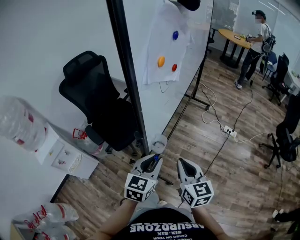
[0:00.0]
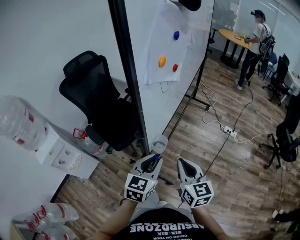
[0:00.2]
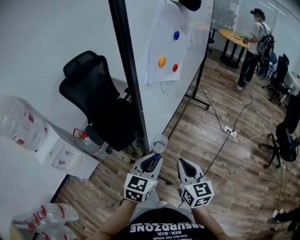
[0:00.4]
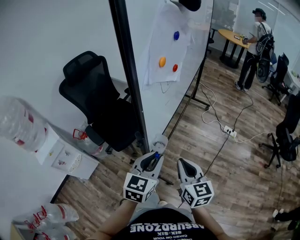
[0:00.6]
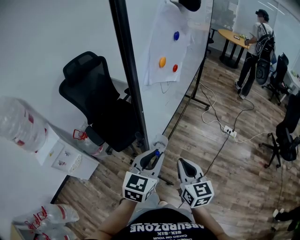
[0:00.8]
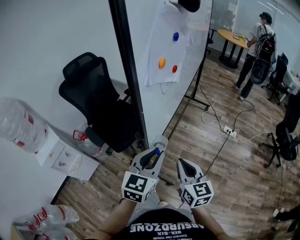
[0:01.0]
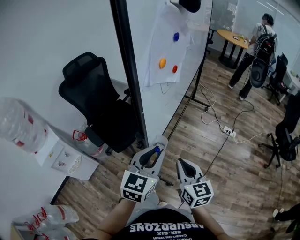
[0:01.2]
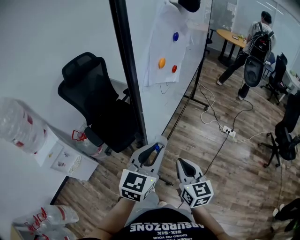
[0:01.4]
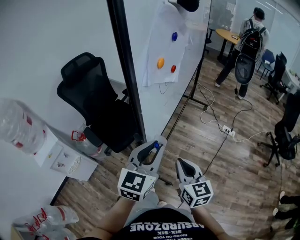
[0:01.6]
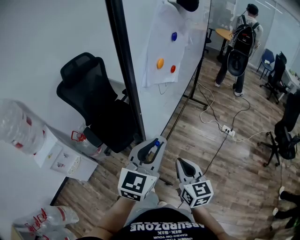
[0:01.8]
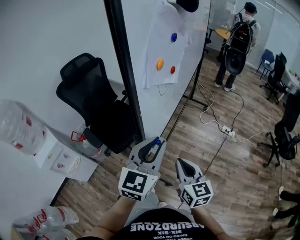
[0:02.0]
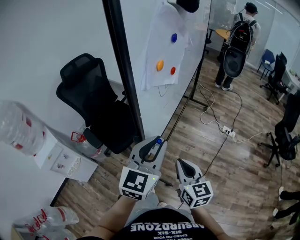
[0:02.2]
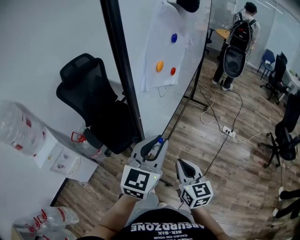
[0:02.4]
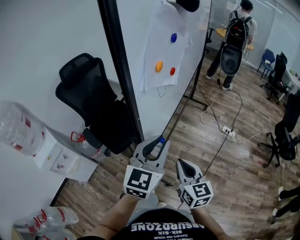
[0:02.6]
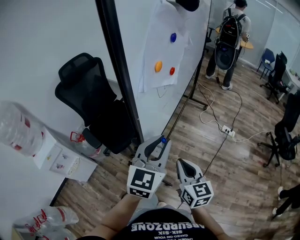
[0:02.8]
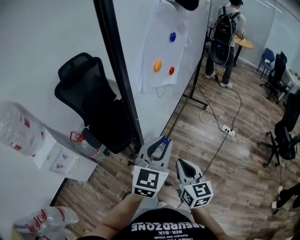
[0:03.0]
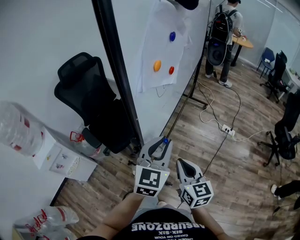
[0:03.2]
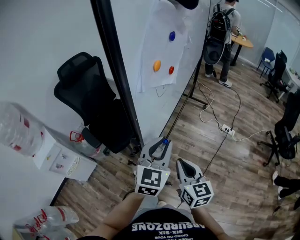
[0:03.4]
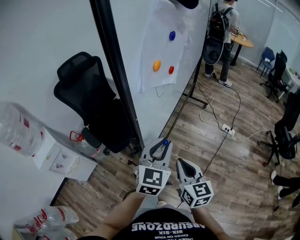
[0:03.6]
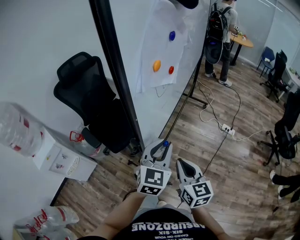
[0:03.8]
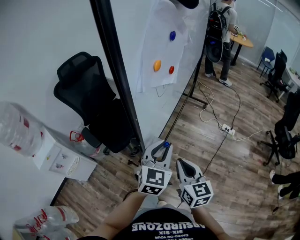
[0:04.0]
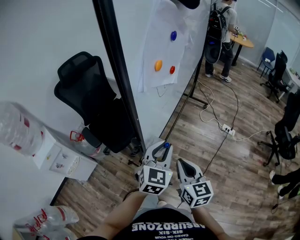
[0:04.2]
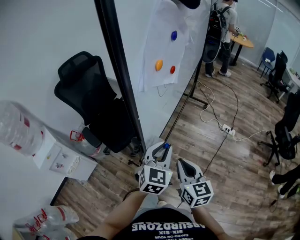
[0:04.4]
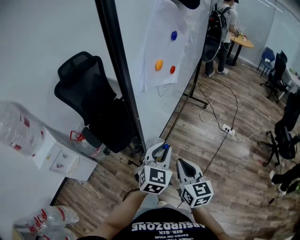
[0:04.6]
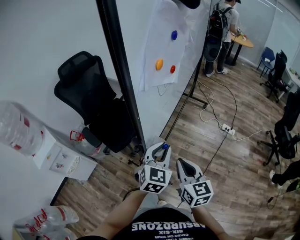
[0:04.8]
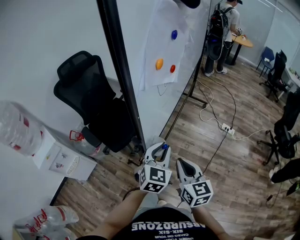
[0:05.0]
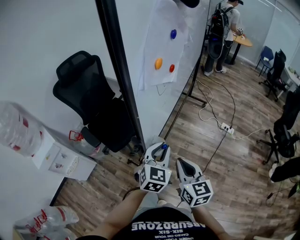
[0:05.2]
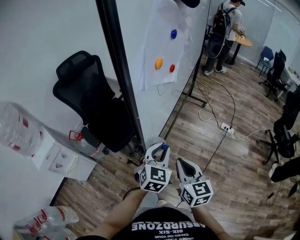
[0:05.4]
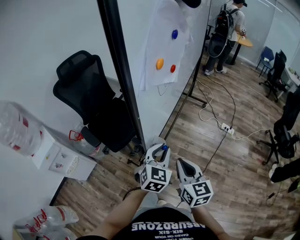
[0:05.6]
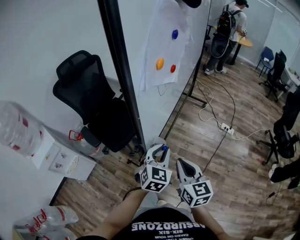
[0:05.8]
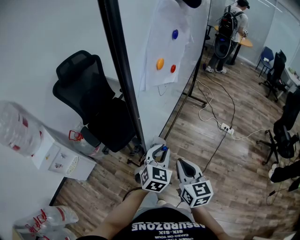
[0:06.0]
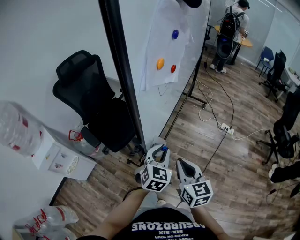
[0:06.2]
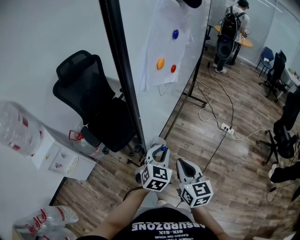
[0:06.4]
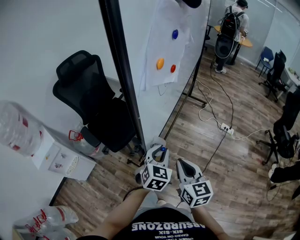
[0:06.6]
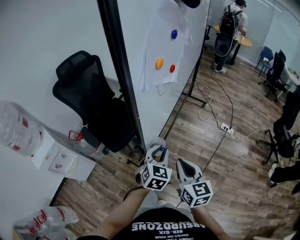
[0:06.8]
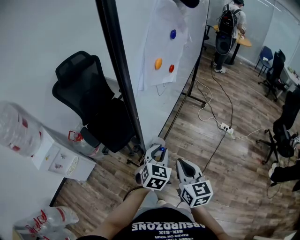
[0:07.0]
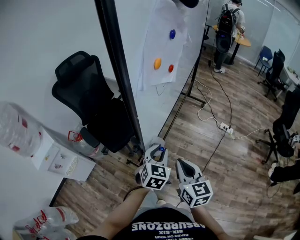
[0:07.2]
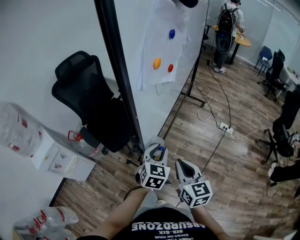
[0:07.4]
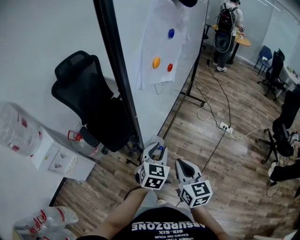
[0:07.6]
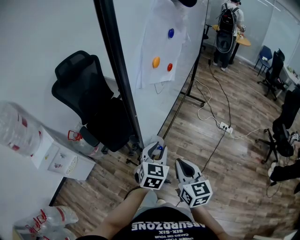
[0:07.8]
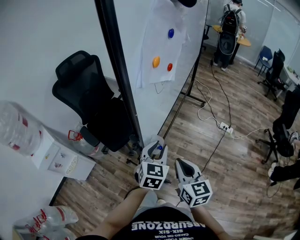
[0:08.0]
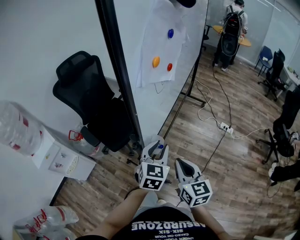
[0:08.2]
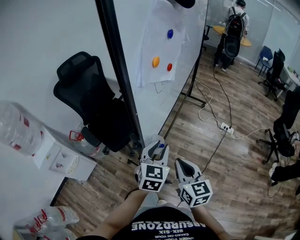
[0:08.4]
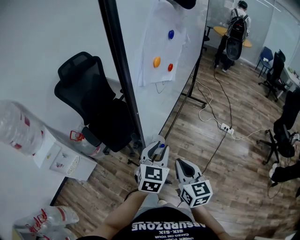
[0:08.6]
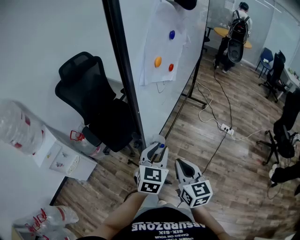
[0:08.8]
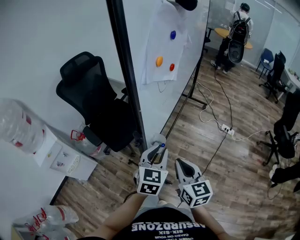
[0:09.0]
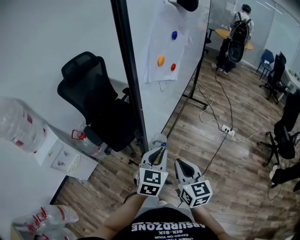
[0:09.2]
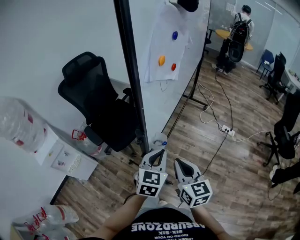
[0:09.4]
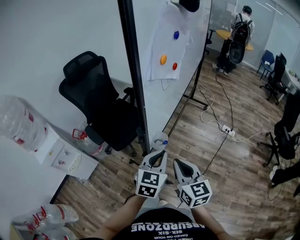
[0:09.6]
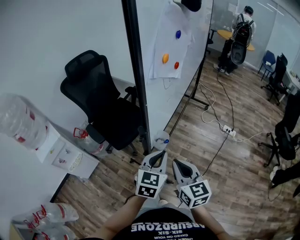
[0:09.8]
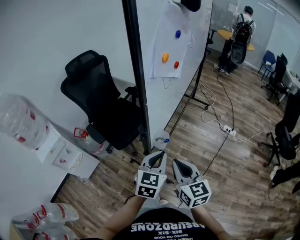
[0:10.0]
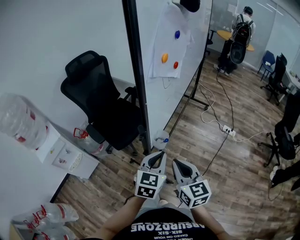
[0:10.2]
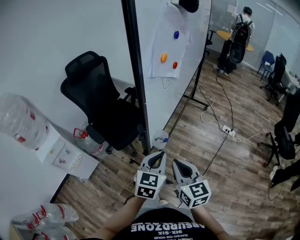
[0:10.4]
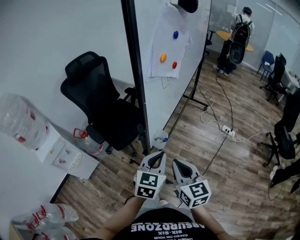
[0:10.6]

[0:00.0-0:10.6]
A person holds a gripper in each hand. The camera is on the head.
0:00.0 to 0:01.6: The left gripper travels upward by roughly 10 cm.
0:01.6 to 0:03.0: The left gripper changes place by roughly 5 cm.
0:03.0 to 0:04.6: The left gripper moves downward, some 10 cm.
0:04.6 to 0:06.0: The grippers move only a little.
0:06.0 to 0:07.6: The grippers stay close to where they were, moving slightly.
0:07.6 to 0:09.0: The left gripper shifts about 5 cm upward.
0:09.0 to 0:10.6: The left gripper travels backward by about 5 cm.

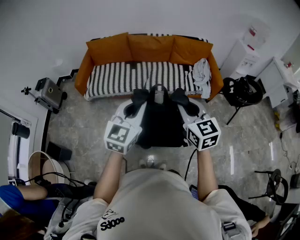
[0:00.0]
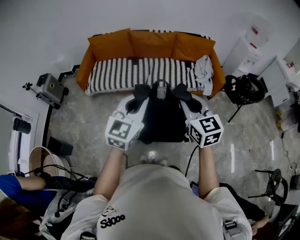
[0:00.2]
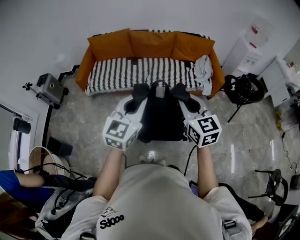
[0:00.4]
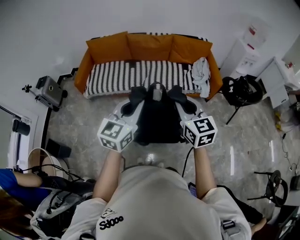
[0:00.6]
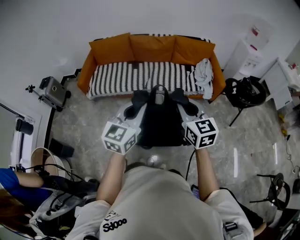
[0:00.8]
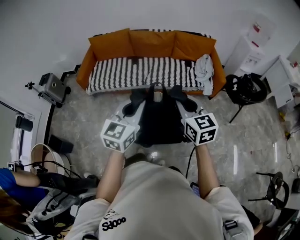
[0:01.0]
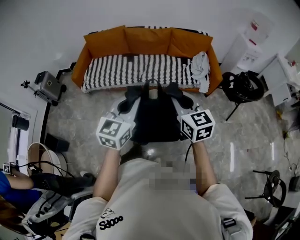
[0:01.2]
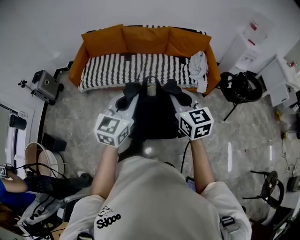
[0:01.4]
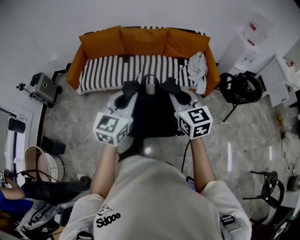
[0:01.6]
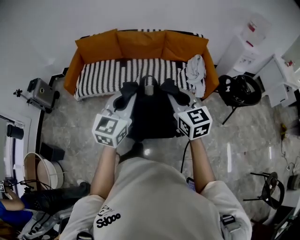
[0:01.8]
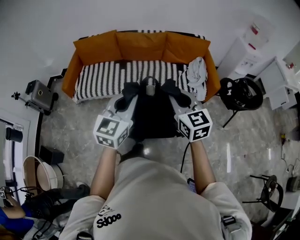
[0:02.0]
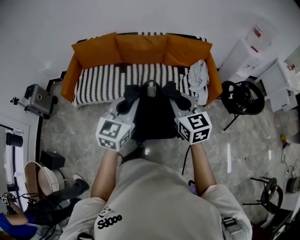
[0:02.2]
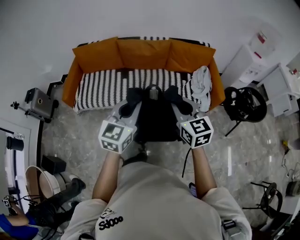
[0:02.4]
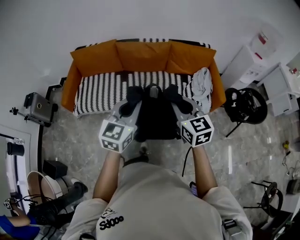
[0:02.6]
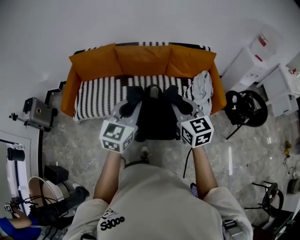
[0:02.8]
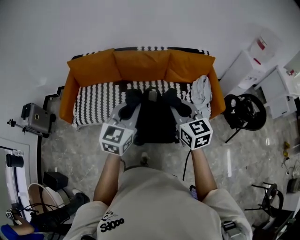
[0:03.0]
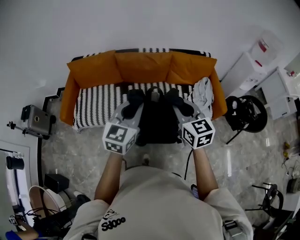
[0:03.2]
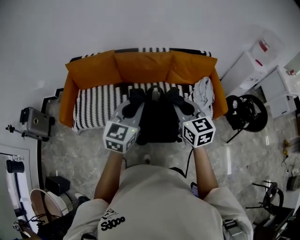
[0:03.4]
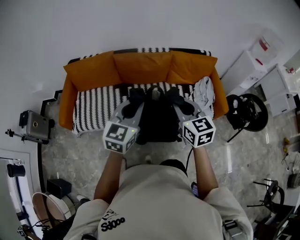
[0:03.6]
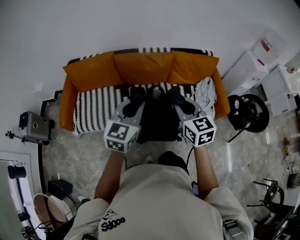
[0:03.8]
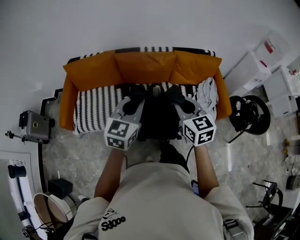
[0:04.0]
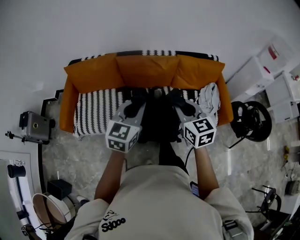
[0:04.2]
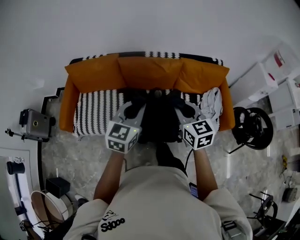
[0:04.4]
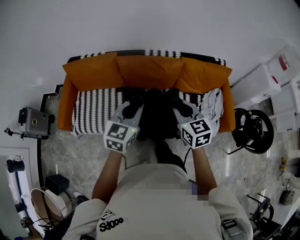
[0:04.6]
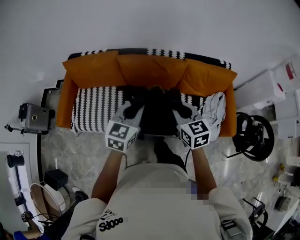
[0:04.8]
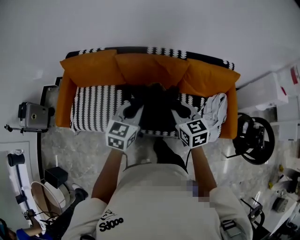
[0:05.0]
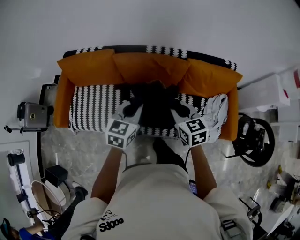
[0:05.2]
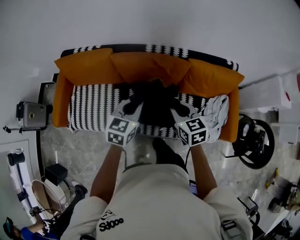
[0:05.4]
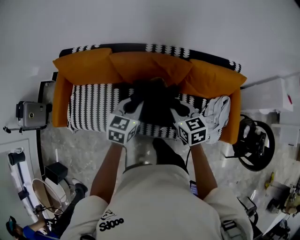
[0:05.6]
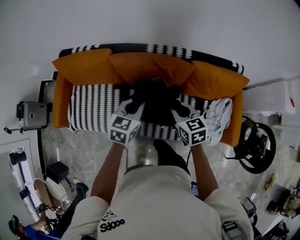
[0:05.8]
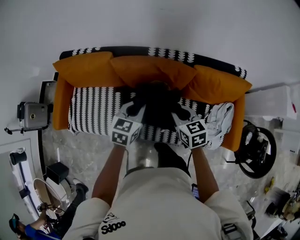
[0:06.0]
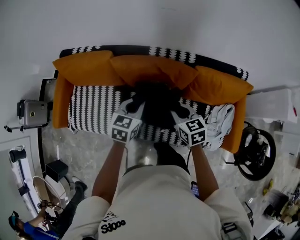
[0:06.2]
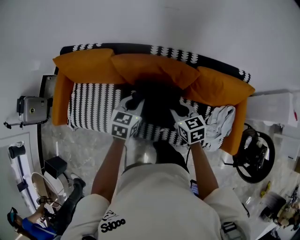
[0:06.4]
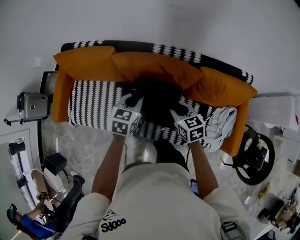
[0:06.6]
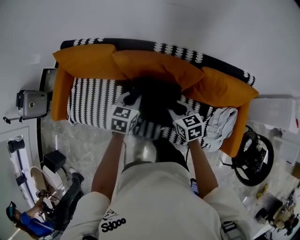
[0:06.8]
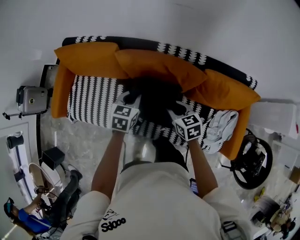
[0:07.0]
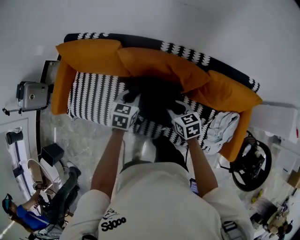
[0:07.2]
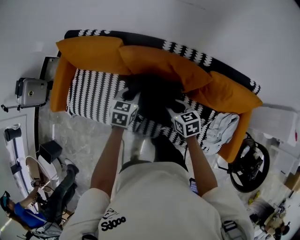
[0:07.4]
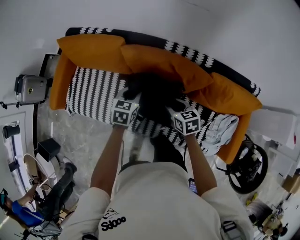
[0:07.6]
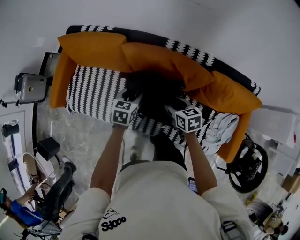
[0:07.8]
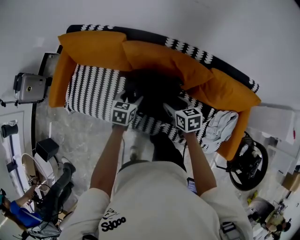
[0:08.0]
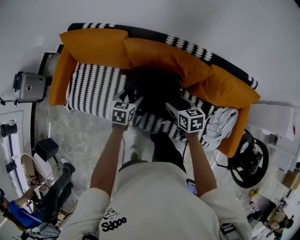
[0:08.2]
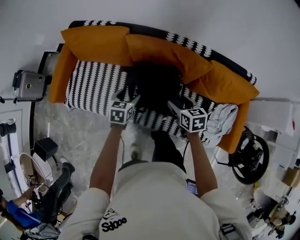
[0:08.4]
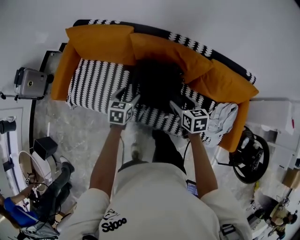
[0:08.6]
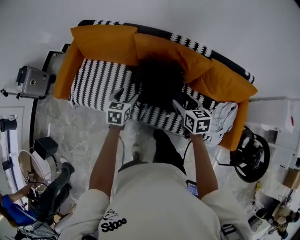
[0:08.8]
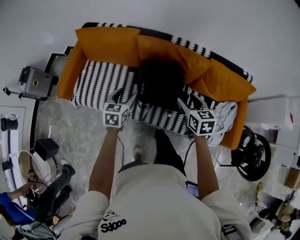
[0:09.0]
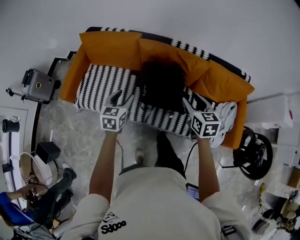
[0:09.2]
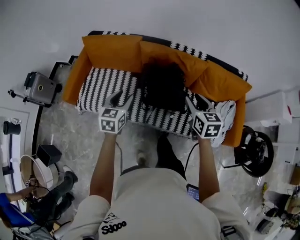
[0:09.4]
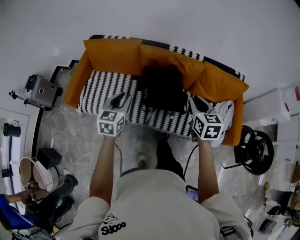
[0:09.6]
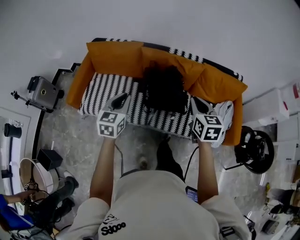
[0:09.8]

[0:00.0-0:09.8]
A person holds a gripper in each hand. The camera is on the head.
0:00.0 to 0:01.4: The two grippers go some 5 cm to the right.
0:01.4 to 0:02.8: Both grippers move forward, roughly 30 cm.
0:02.8 to 0:04.2: The grippers both shift forward by about 20 cm.
0:04.2 to 0:05.6: Both grippers travel together forward and downward, roughly 30 cm. The right gripper rotates approximately 20 degrees; the left gripper changes its angle by approximately 20 degrees.
0:05.6 to 0:07.0: The grippers both shift downward and forward by approximately 15 cm.
0:07.0 to 0:08.4: The right gripper travels backward by about 5 cm, and opens up. The left gripper moves to the left, backward and downward, roughly 15 cm, and opens up.
0:08.4 to 0:09.8: The left gripper goes about 35 cm upward, backward and to the left, turns by roughly 30 degrees, and closes its fingers. Meanwhile the right gripper shifts roughly 30 cm upward and backward, changes its angle by some 30 degrees, and closes.

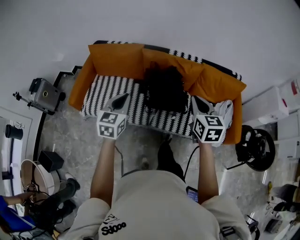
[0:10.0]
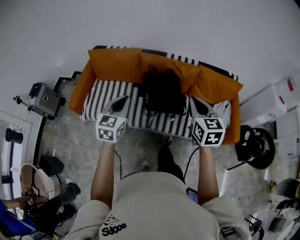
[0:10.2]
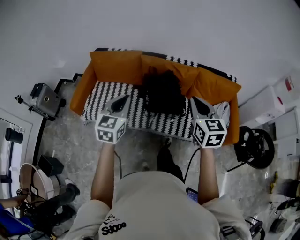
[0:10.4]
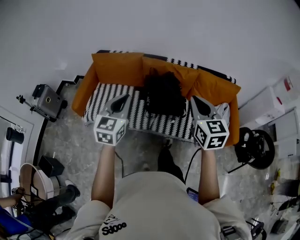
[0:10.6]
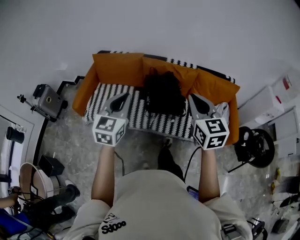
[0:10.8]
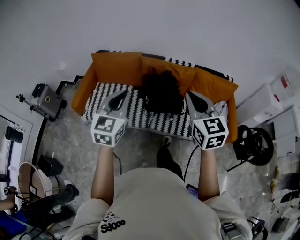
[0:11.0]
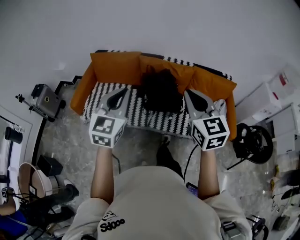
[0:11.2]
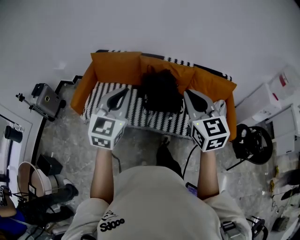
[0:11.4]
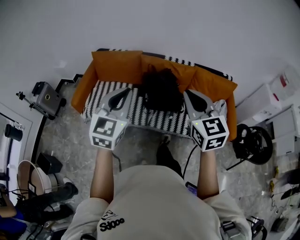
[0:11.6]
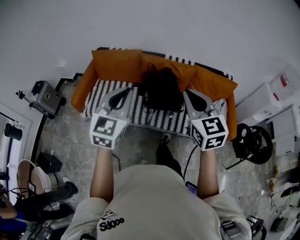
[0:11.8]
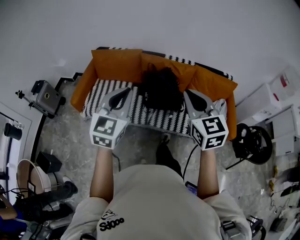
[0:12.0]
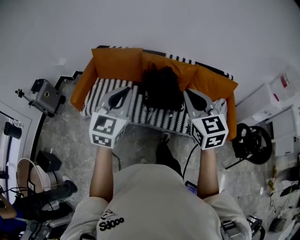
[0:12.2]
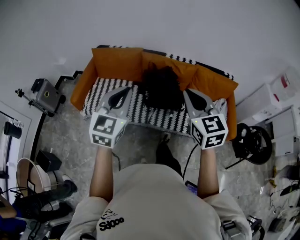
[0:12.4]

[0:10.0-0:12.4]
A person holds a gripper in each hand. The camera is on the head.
0:10.0 to 0:11.2: The right gripper moves backward and upward, about 20 cm, and turns by roughly 20 degrees. Meanwhile the left gripper shifts roughly 20 cm upward and backward.
0:11.2 to 0:12.4: There are only small adjustments of the grippers.

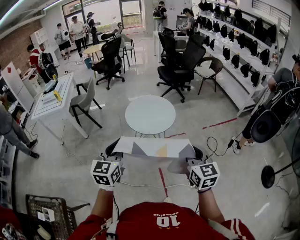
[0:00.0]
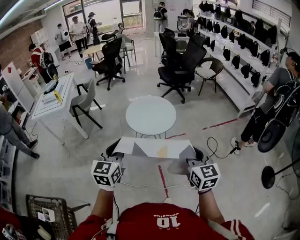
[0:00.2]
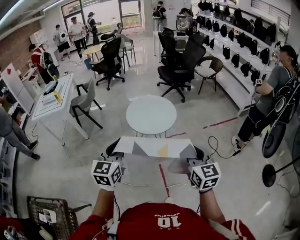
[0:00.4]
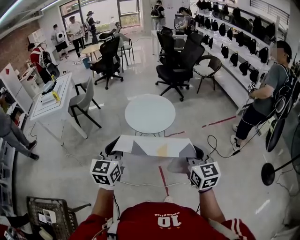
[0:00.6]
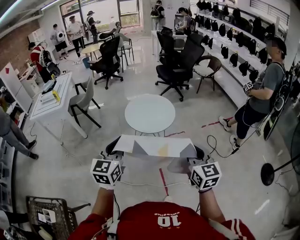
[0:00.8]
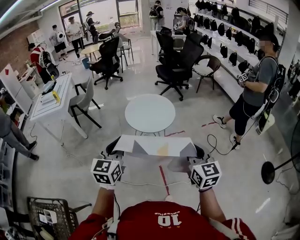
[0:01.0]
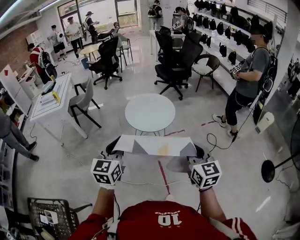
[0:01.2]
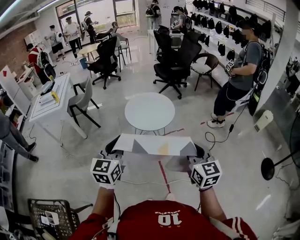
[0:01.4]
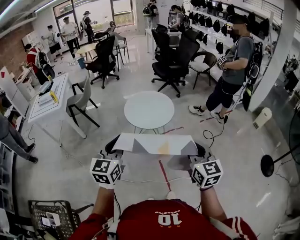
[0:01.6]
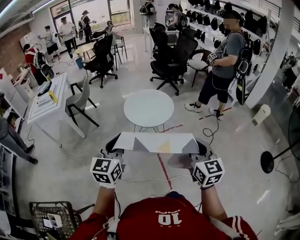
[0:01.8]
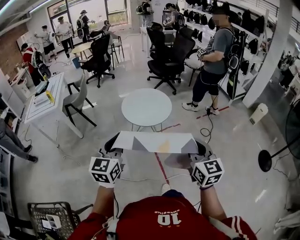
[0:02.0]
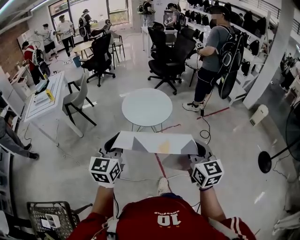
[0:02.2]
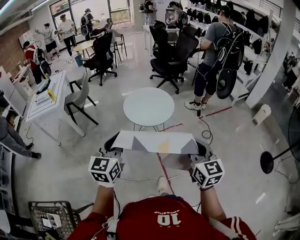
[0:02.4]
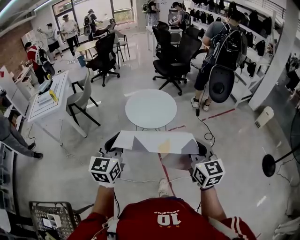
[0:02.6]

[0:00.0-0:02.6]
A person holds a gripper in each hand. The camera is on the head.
0:00.0 to 0:01.2: The grippers move only a little.
0:01.2 to 0:02.6: The grippers move only a little.
